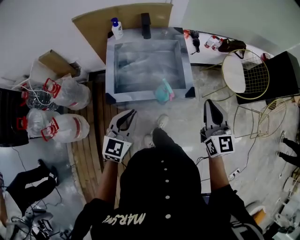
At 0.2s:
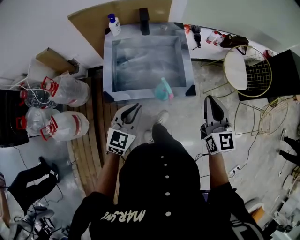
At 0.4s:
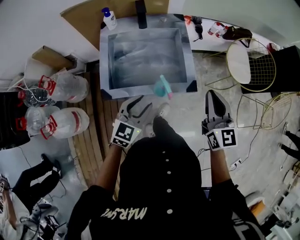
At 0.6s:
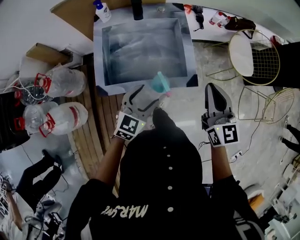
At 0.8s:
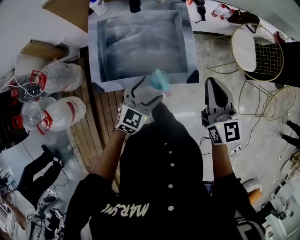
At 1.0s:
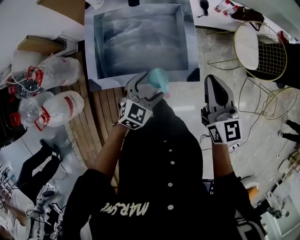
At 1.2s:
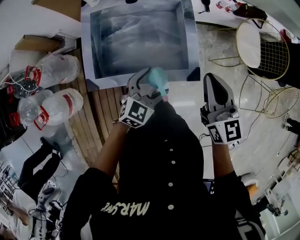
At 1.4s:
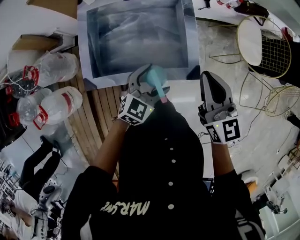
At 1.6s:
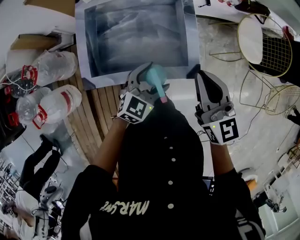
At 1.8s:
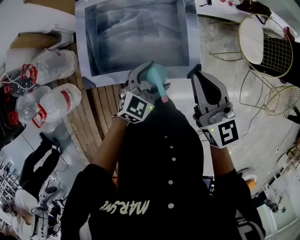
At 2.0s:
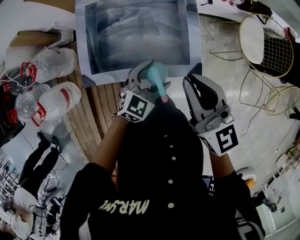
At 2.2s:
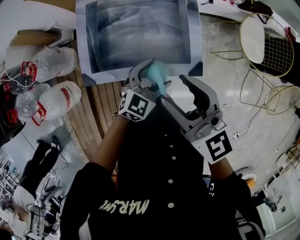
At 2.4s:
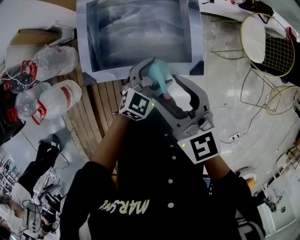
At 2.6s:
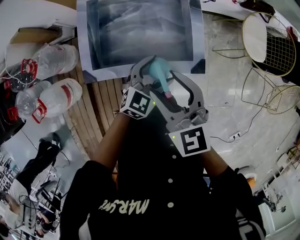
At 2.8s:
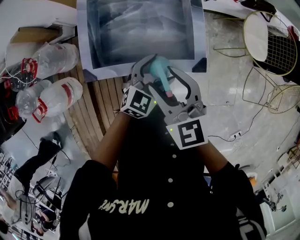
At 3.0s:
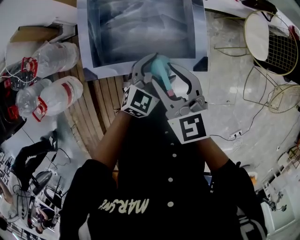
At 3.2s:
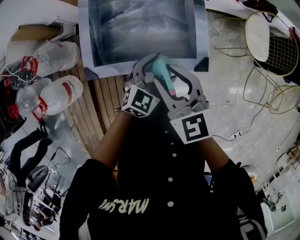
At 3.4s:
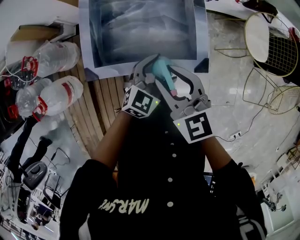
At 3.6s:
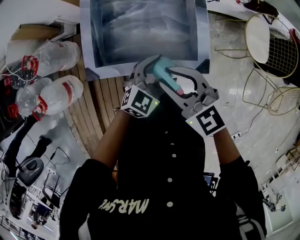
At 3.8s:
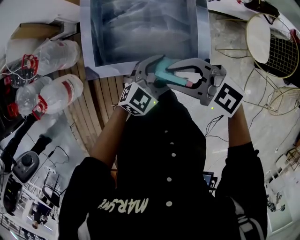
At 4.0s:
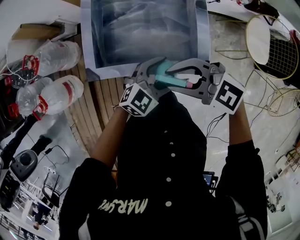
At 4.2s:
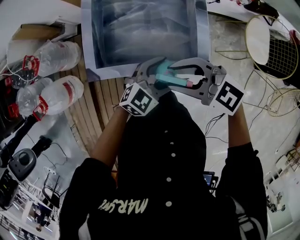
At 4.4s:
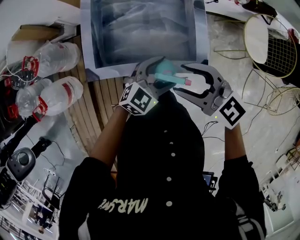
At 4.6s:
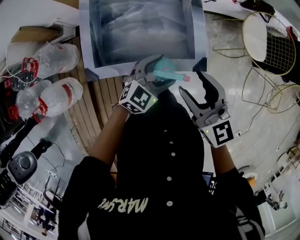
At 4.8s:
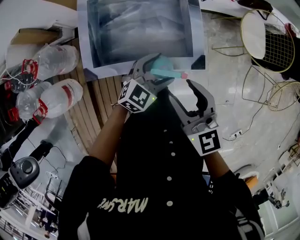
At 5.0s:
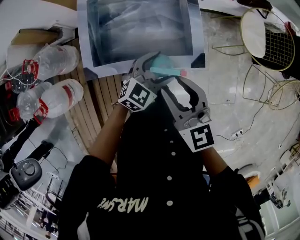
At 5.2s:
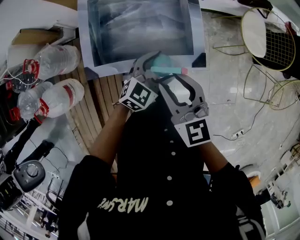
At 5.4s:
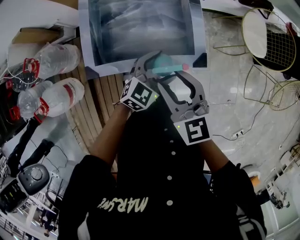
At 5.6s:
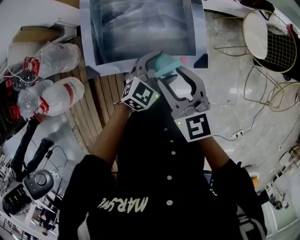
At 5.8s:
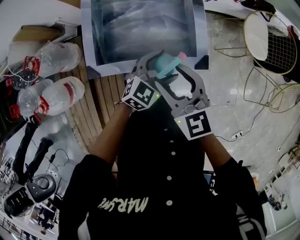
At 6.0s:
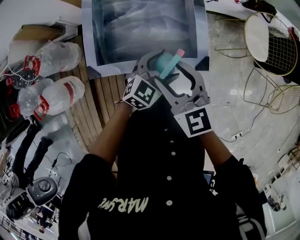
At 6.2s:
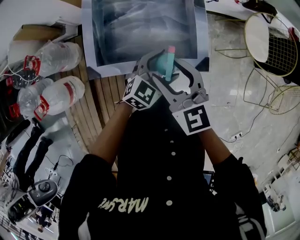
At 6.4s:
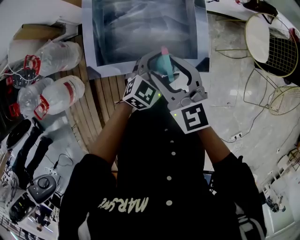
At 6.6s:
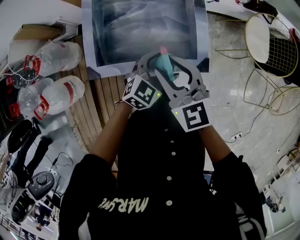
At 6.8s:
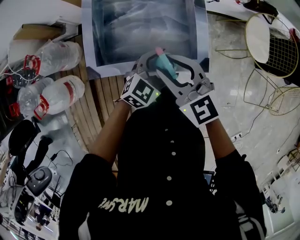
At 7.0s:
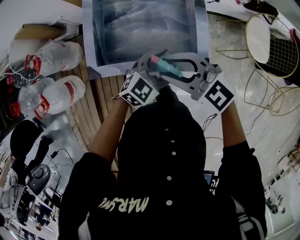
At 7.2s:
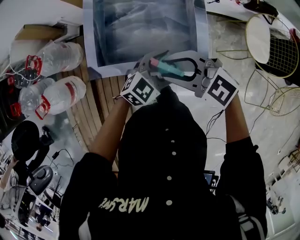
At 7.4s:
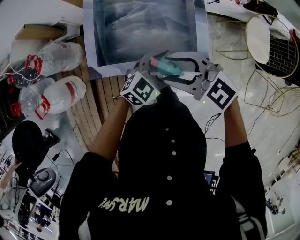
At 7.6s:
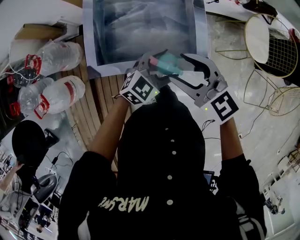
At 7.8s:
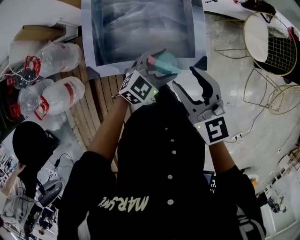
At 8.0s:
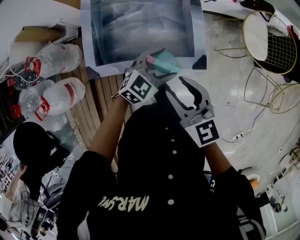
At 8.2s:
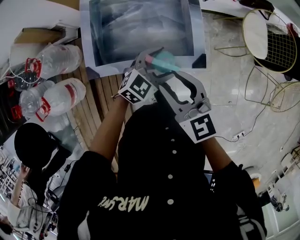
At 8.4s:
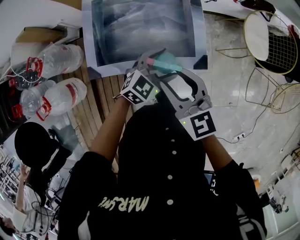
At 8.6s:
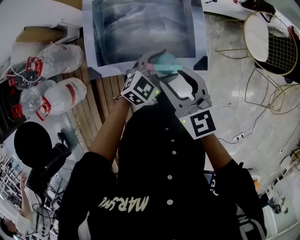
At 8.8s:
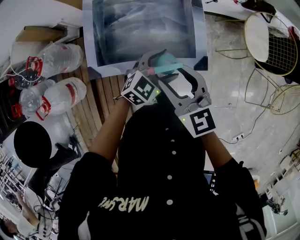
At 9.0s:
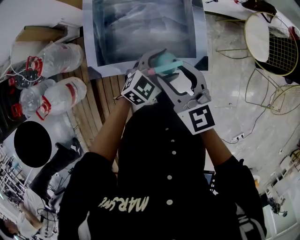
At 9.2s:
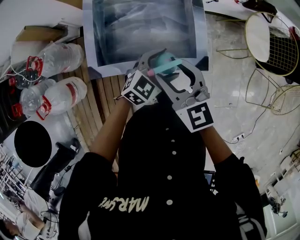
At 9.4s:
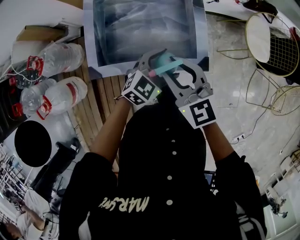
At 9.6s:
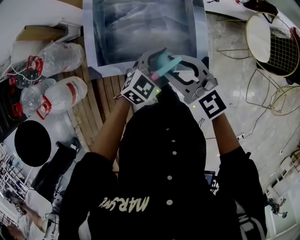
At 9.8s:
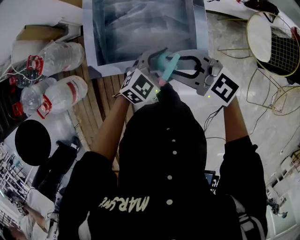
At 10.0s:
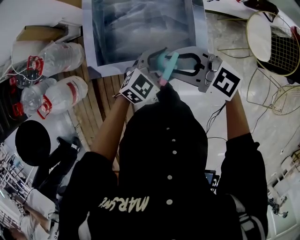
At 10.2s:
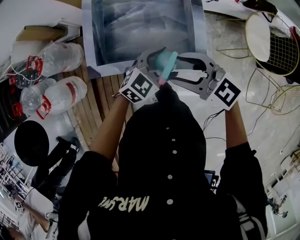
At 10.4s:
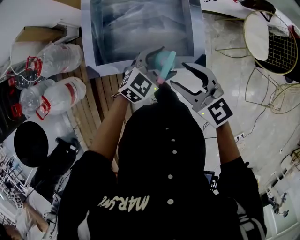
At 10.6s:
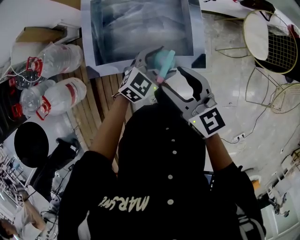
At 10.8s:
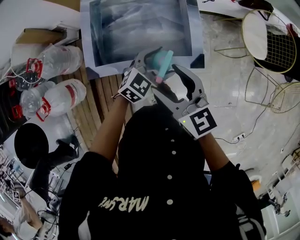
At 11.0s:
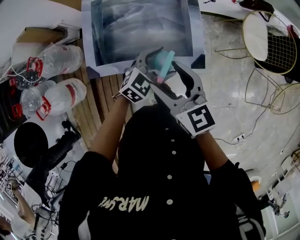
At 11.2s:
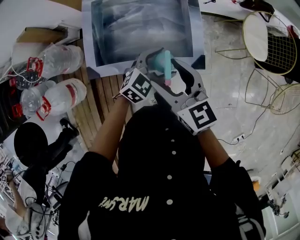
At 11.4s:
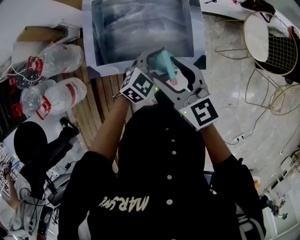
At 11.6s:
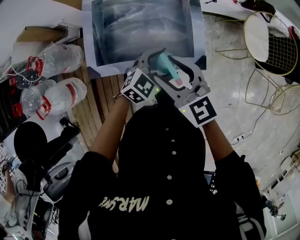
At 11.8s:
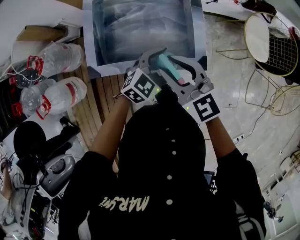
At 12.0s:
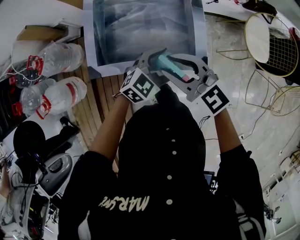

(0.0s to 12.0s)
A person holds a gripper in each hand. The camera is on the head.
0.0s - 1.6s: The left gripper is displaced forward, downward and to the right by roughly 25 cm, rotates some 20 degrees, and opens its fingers. Meanwhile the right gripper goes about 15 cm forward and downward.
1.6s - 3.0s: The right gripper shifts approximately 10 cm to the left, swivels approximately 20 degrees, and opens its fingers.
3.0s - 4.4s: The right gripper rotates approximately 30 degrees.
4.4s - 6.0s: The right gripper changes its angle by about 30 degrees.
10.4s - 12.0s: The grippers stay close to where they were, moving slightly.

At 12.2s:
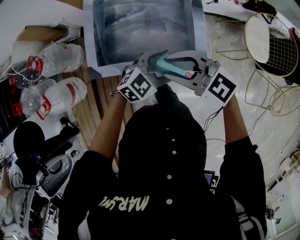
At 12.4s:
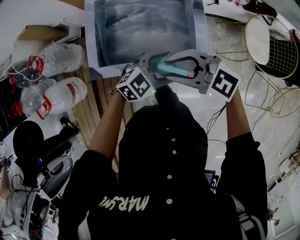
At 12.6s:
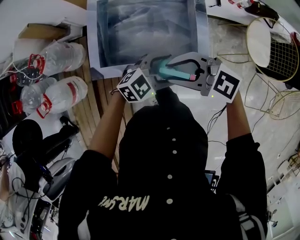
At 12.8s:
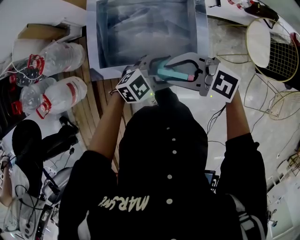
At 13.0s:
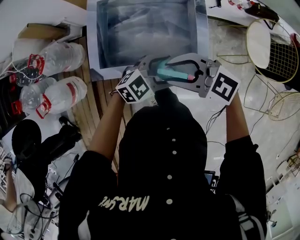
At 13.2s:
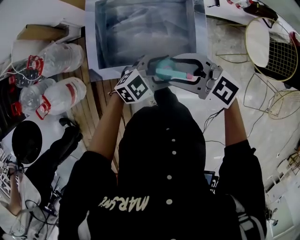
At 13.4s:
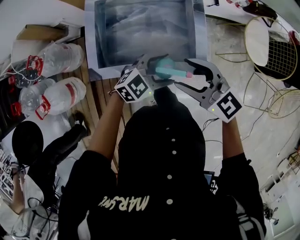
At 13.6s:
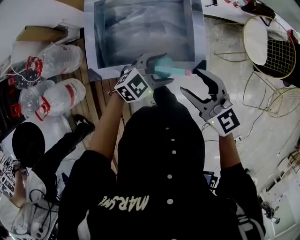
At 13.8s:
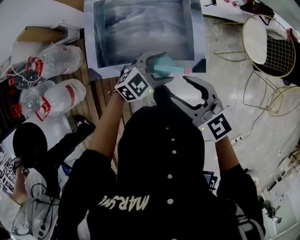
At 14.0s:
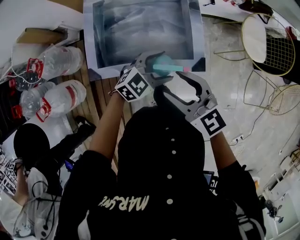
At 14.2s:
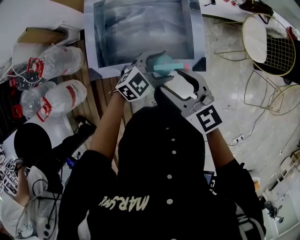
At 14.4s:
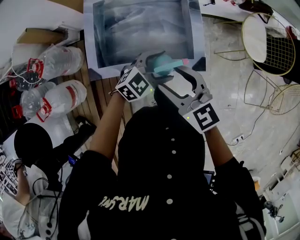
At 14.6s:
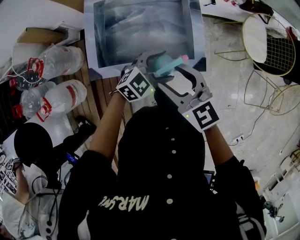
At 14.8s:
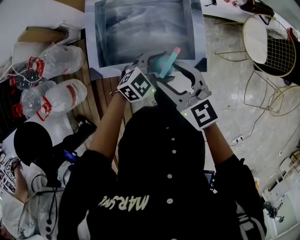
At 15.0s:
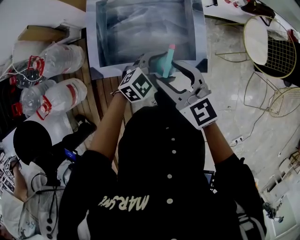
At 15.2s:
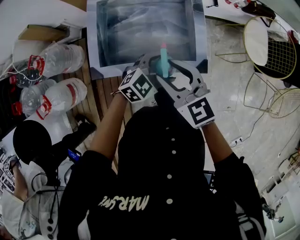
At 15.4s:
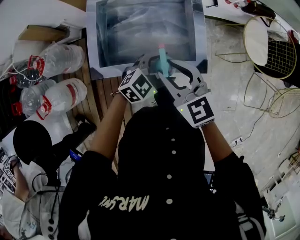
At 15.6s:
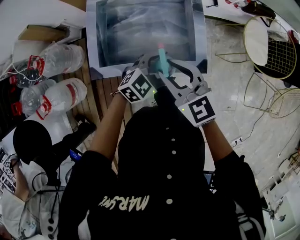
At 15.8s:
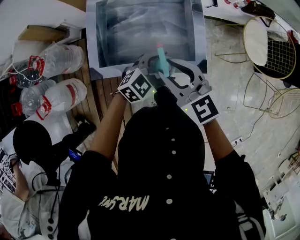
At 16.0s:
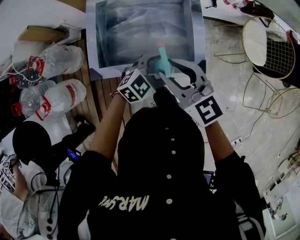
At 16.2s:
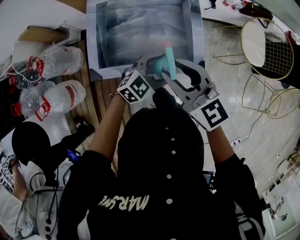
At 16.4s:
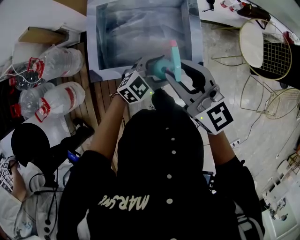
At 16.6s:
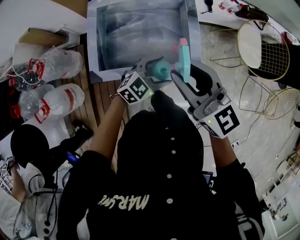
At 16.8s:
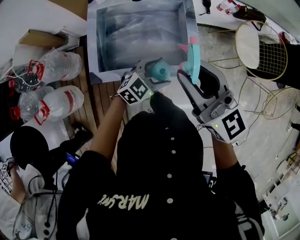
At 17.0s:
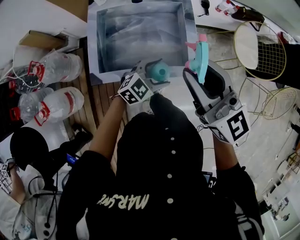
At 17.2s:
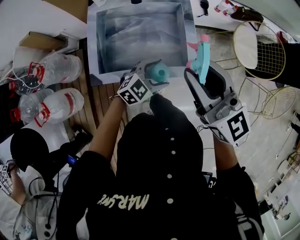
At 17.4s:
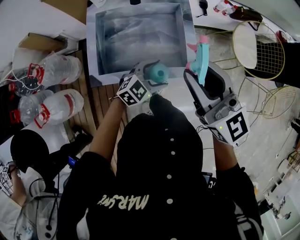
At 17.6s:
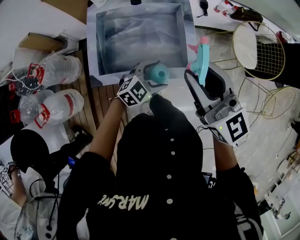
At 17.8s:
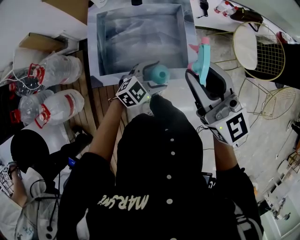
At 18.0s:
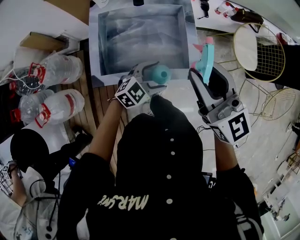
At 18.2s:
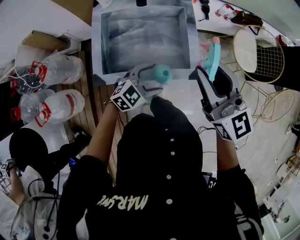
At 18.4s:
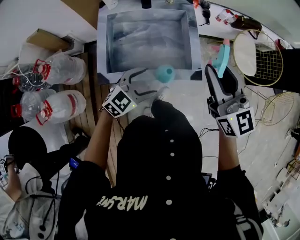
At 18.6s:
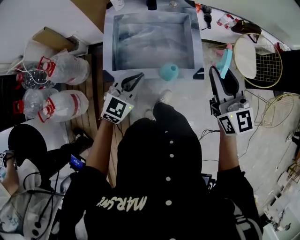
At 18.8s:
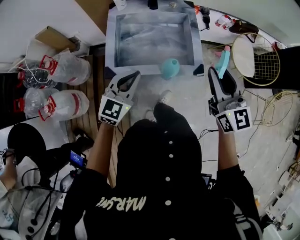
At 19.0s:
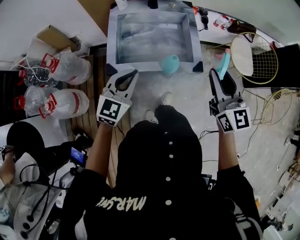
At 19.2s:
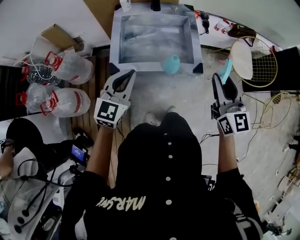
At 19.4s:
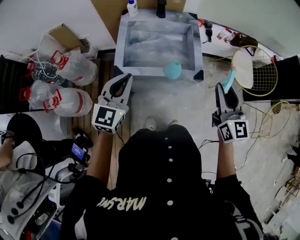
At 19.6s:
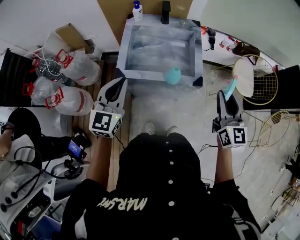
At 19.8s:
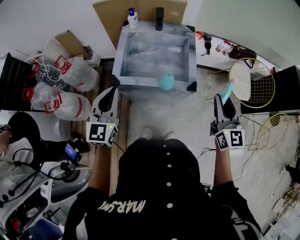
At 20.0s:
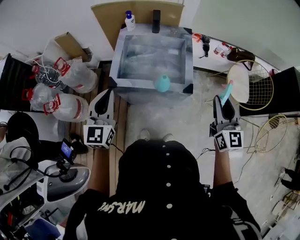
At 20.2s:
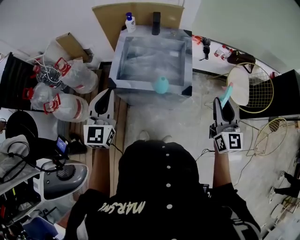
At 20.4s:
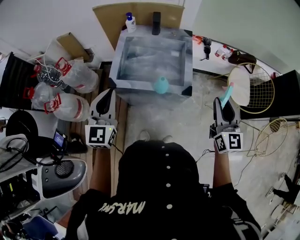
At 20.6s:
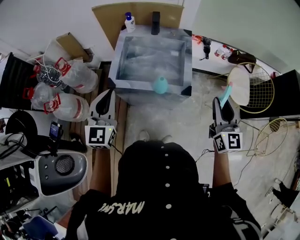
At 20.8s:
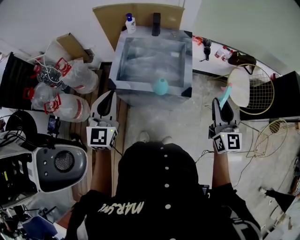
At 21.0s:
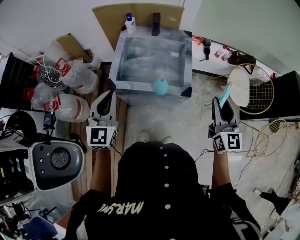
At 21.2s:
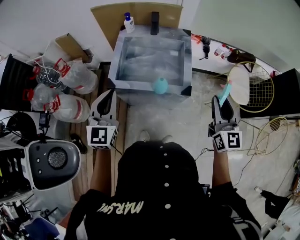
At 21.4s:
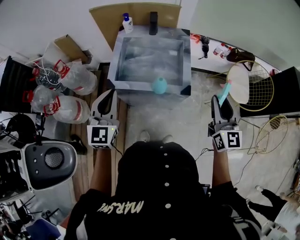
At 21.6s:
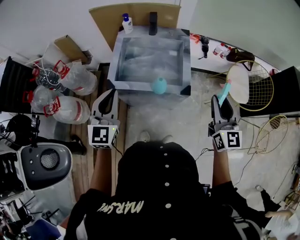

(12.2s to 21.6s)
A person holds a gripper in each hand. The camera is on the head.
12.2s - 13.8s: The right gripper changes place by approximately 5 cm, rotates about 30 degrees, and opens.
13.8s - 15.4s: The right gripper shifts approximately 5 cm to the left, and closes its fingers.
15.4s - 17.0s: The right gripper goes approximately 15 cm upward and to the right, and turns by some 30 degrees.
17.0s - 18.4s: The left gripper is displaced to the left and backward by approximately 10 cm.
18.4s - 20.0s: The right gripper goes roughly 15 cm to the right and backward, while the left gripper goes some 25 cm upward, to the left and backward, changes its angle by some 60 degrees, and closes.
20.0s - 21.6s: The grippers stay close to where they were, moving slightly.

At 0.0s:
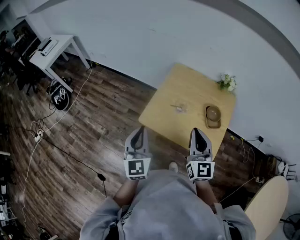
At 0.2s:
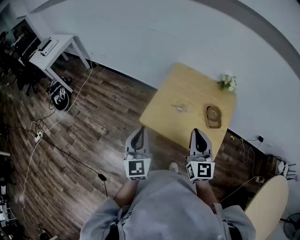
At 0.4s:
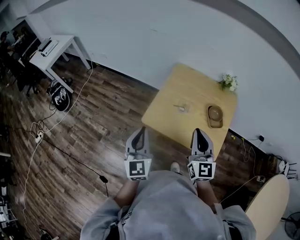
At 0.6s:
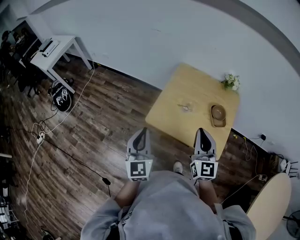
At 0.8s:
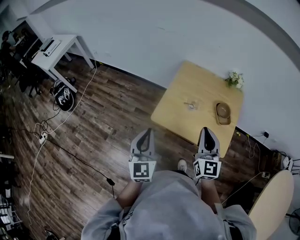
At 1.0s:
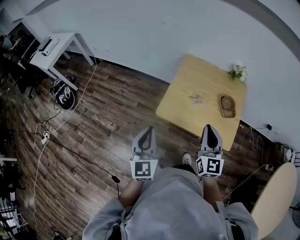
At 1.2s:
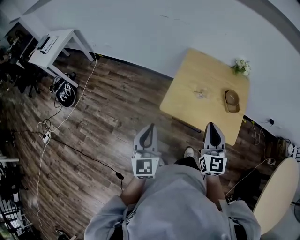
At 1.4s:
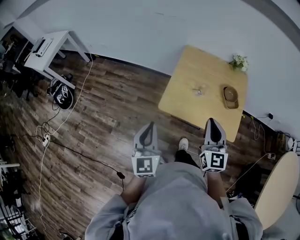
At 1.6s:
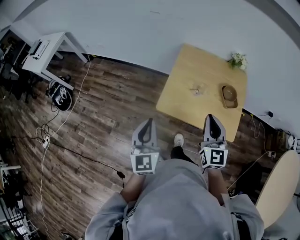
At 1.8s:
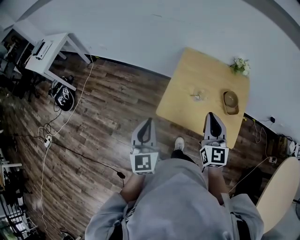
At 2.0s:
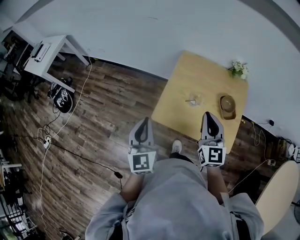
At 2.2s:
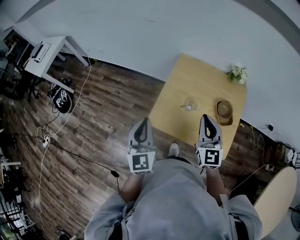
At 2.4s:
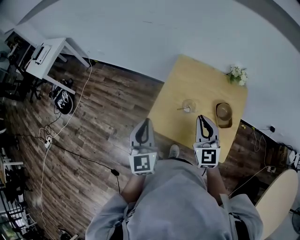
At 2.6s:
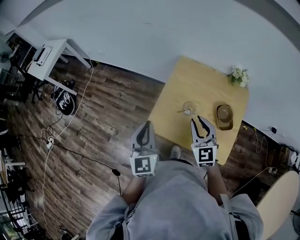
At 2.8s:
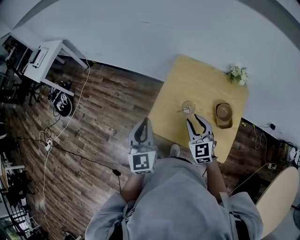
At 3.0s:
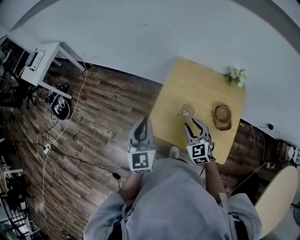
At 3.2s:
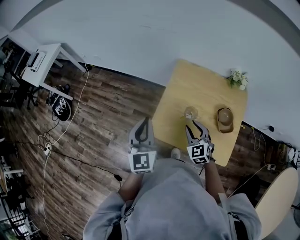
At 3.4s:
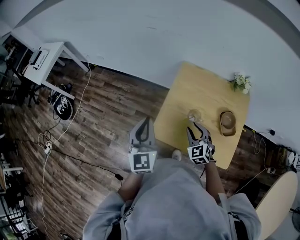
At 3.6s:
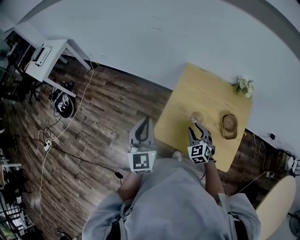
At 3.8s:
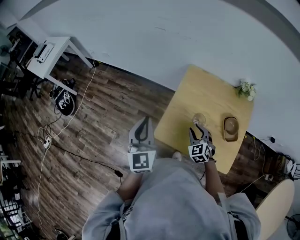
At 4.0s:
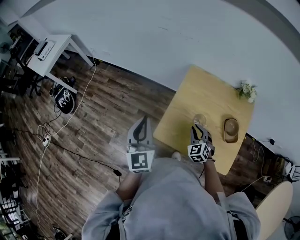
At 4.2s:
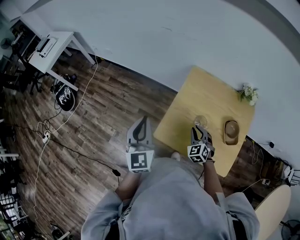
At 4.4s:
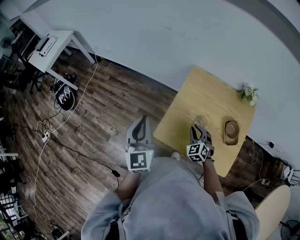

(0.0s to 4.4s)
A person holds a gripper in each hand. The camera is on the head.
0.0s - 1.4s: The two grippers go approximately 10 cm to the left.
1.4s - 3.0s: The right gripper moves forward and downward, approximately 20 cm, turns by some 30 degrees, and opens. Meanwhile the left gripper is displaced forward and to the right by approximately 20 cm.
3.0s - 4.4s: The left gripper heads to the left, covering roughly 5 cm, while the right gripper moves downward, approximately 10 cm.
